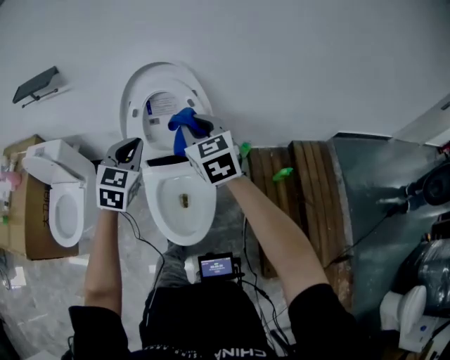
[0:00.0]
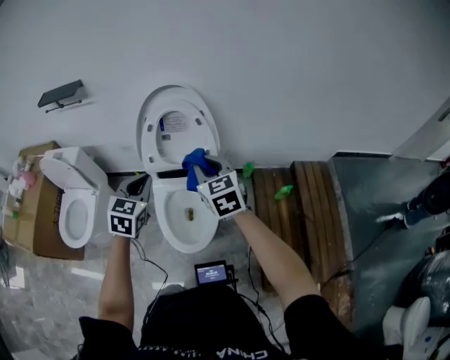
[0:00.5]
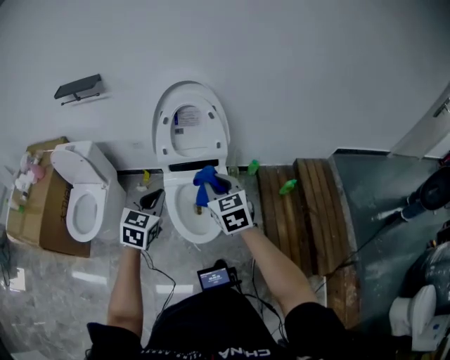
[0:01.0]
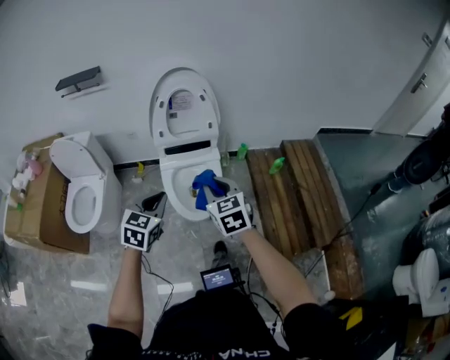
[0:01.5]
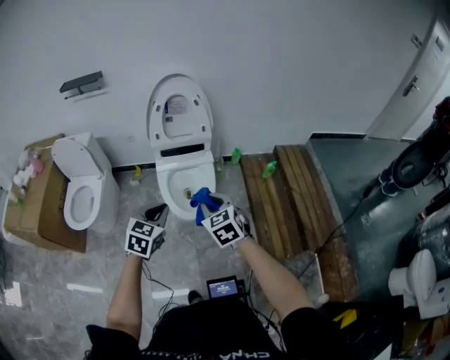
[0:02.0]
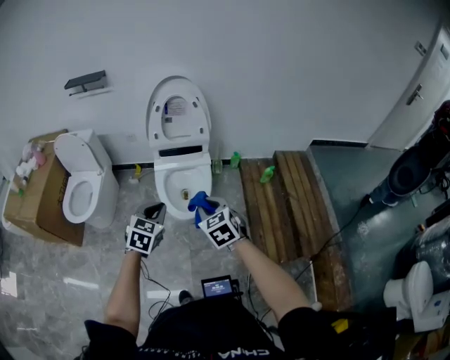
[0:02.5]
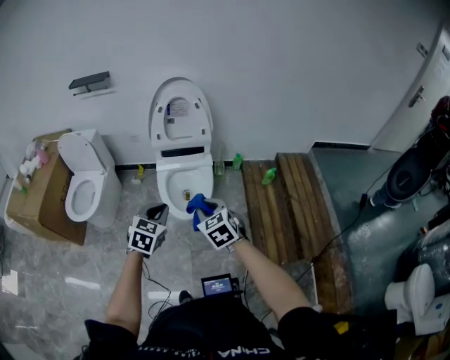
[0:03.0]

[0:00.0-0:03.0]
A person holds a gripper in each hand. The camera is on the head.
0:00.0 to 0:01.5: The grippers both shift backward by some 40 cm.
0:01.5 to 0:03.0: The two grippers go some 15 cm backward and to the right.

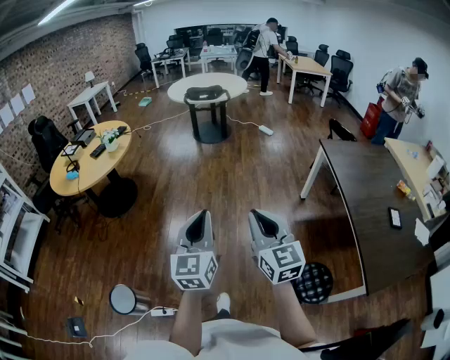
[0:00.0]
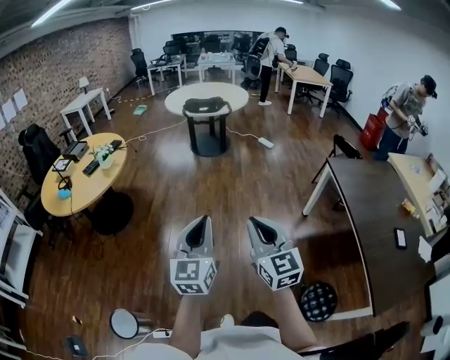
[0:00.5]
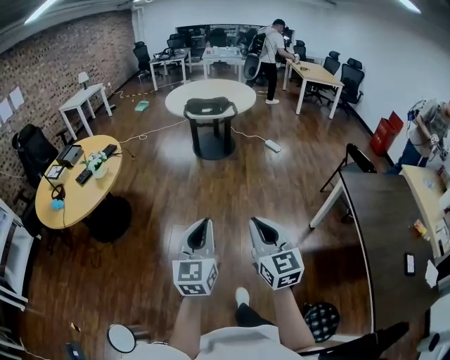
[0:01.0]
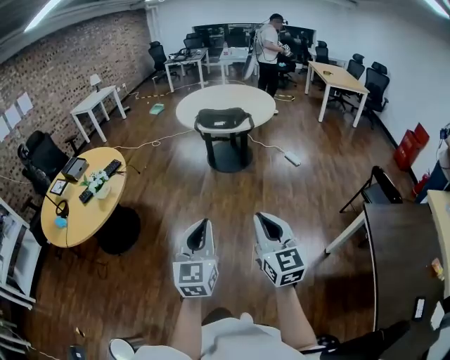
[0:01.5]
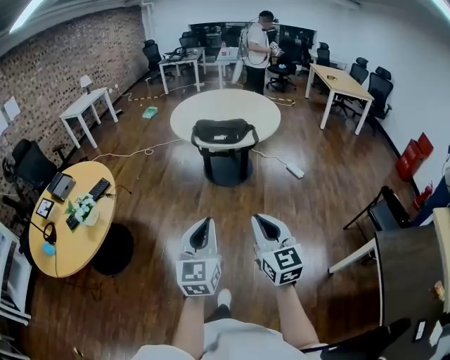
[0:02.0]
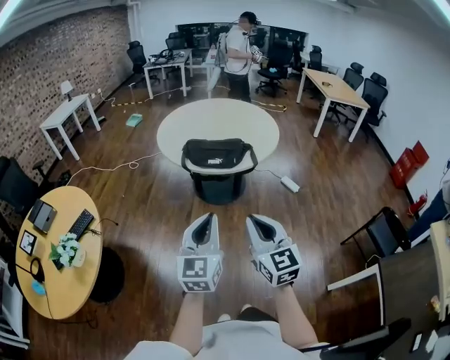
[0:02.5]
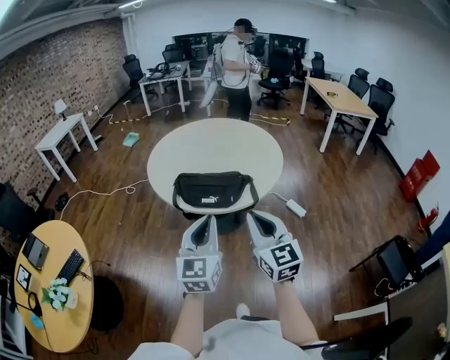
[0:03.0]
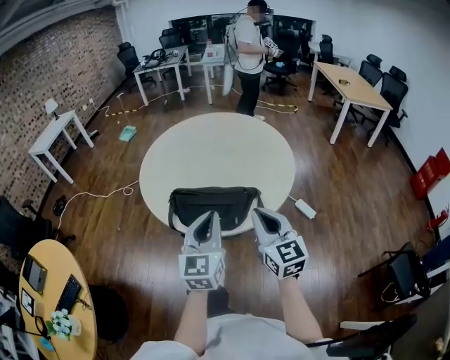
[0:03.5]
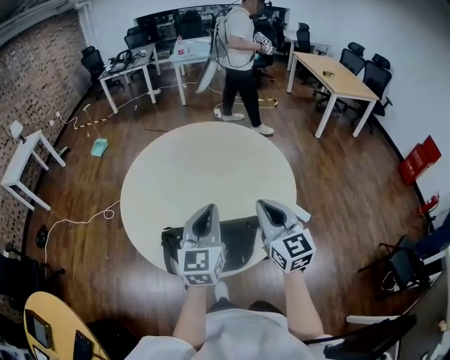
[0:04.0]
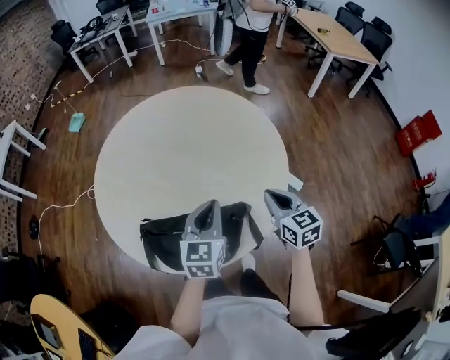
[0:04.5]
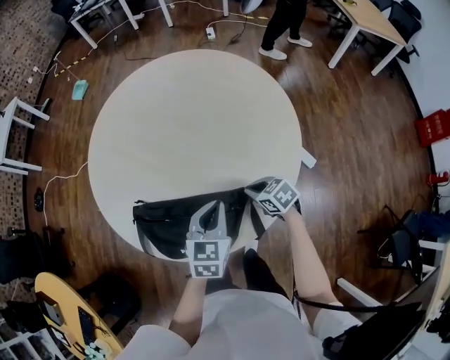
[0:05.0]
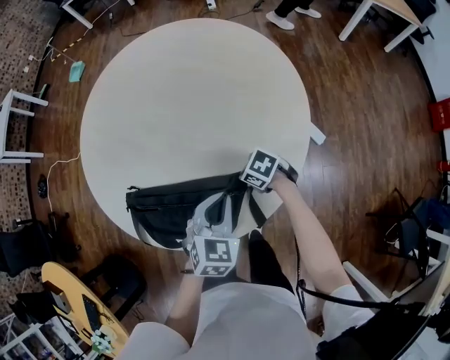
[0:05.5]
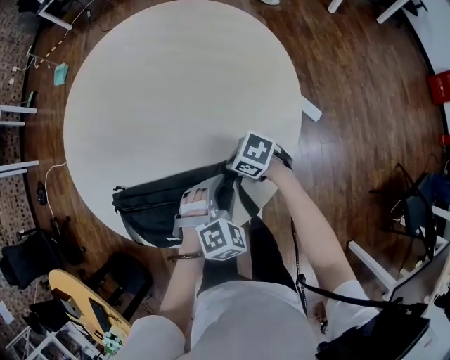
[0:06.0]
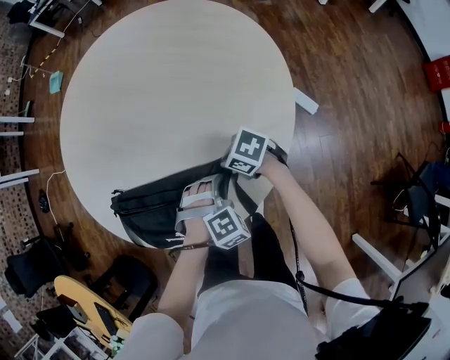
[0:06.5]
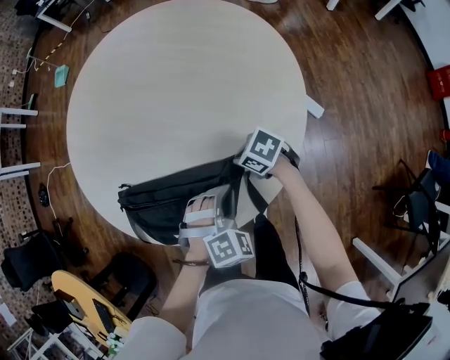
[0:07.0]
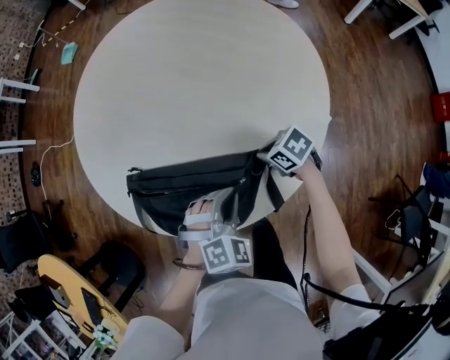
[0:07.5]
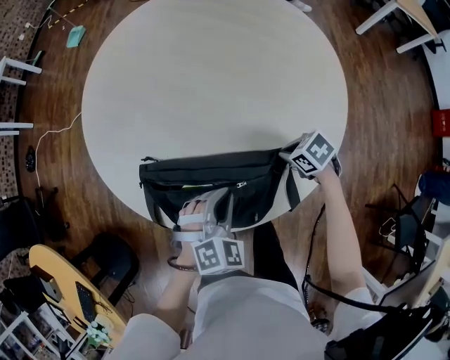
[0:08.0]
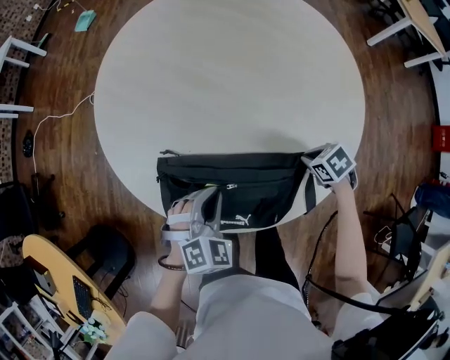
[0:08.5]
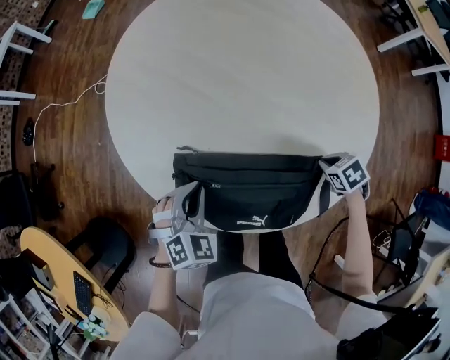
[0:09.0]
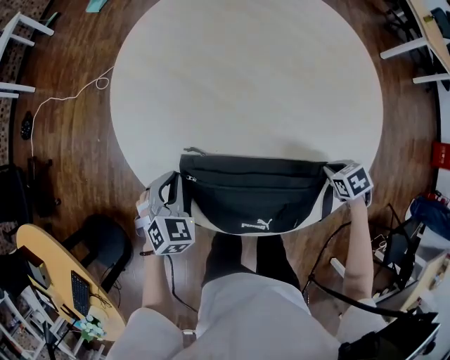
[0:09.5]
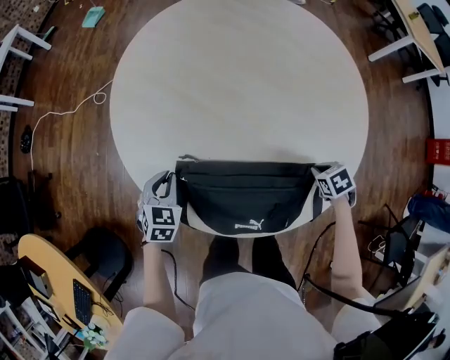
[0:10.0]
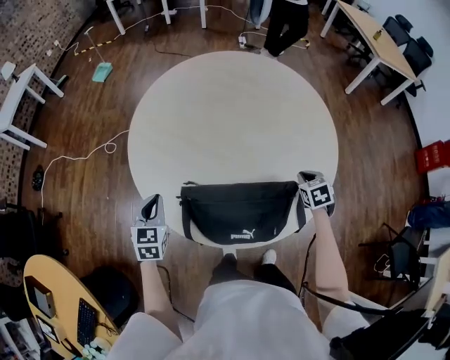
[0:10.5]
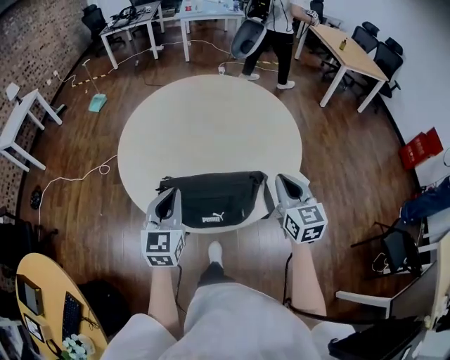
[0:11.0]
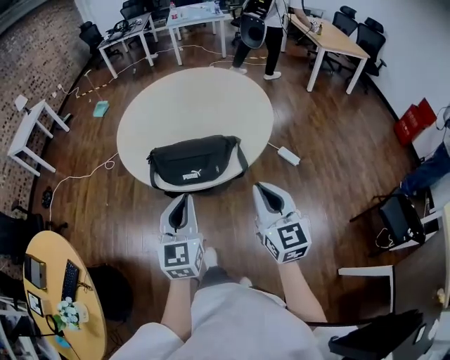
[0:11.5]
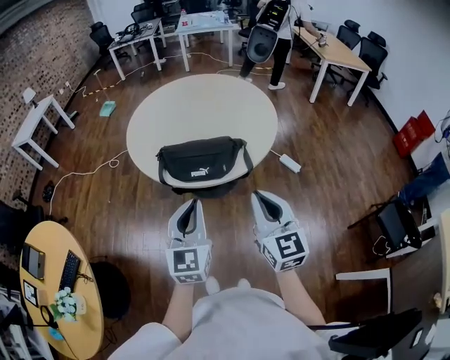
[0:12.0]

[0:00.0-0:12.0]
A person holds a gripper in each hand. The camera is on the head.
0:00.0 to 0:02.0: The two grippers travel together, forward, some 80 cm.
0:02.0 to 0:04.0: The two grippers travel together, forward, approximately 90 cm.
0:04.0 to 0:06.0: The two grippers go approximately 35 cm downward. The right gripper tips its fingers downward by roughly 40 degrees. The left gripper angles its fingers downward, by approximately 60 degrees, and opens.
0:06.0 to 0:08.0: The left gripper moves to the left and forward, about 15 cm, and closes up.
0:08.0 to 0:10.0: The right gripper swivels some 20 degrees; the left gripper ends up some 30 cm from where it was, and swivels roughly 30 degrees.
0:10.0 to 0:12.0: The left gripper moves about 60 cm, and tilts its fingers some 40 degrees upward. Meanwhile the right gripper changes place by roughly 60 cm, and tips its fingers upward by roughly 80 degrees.

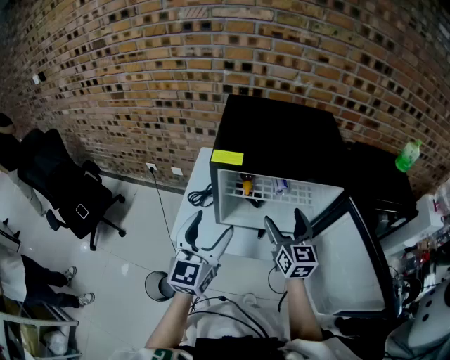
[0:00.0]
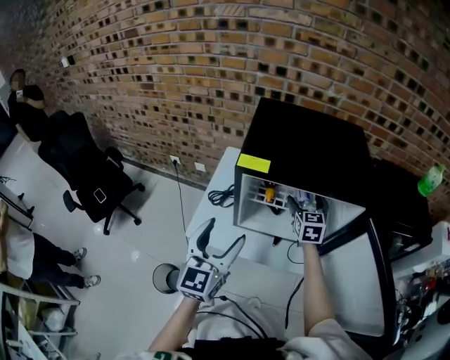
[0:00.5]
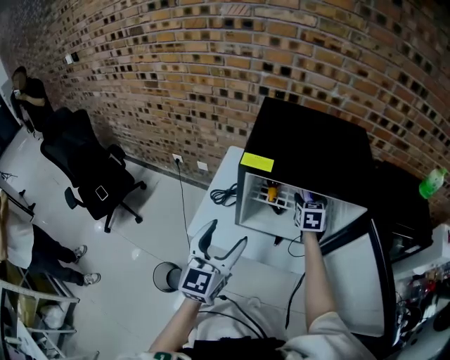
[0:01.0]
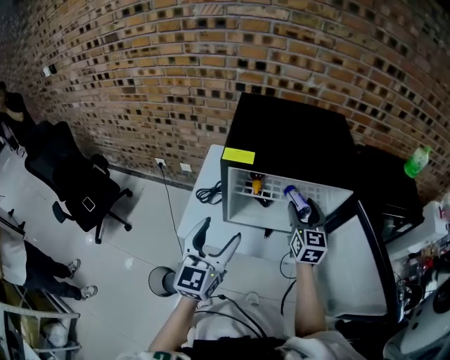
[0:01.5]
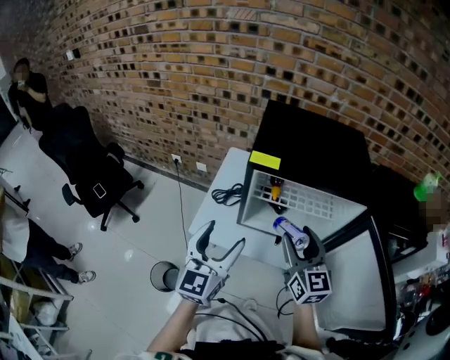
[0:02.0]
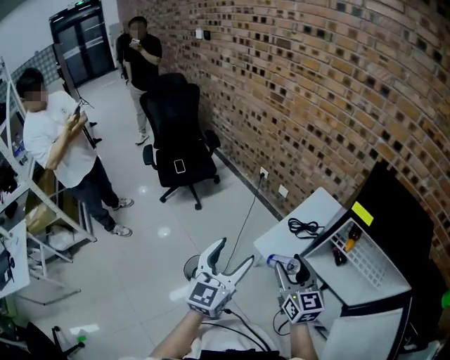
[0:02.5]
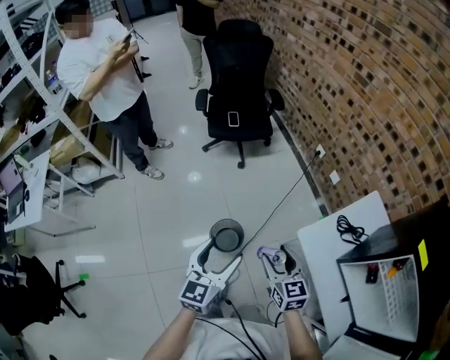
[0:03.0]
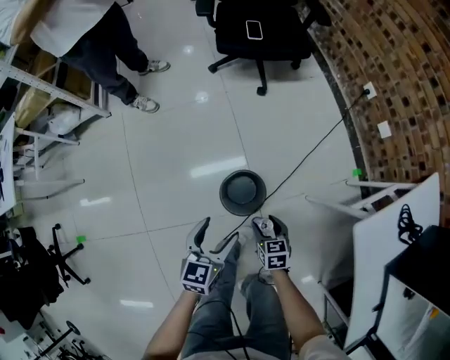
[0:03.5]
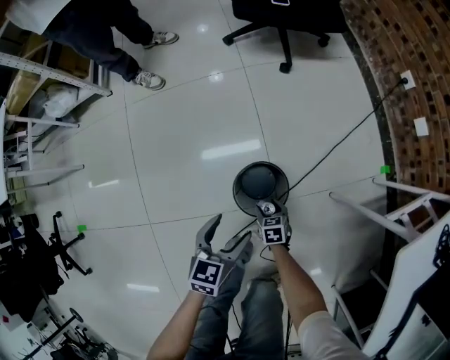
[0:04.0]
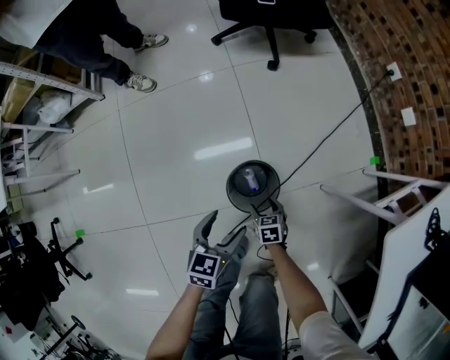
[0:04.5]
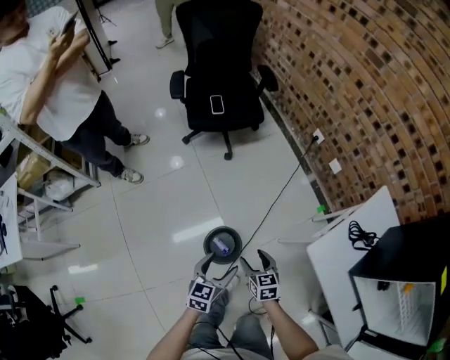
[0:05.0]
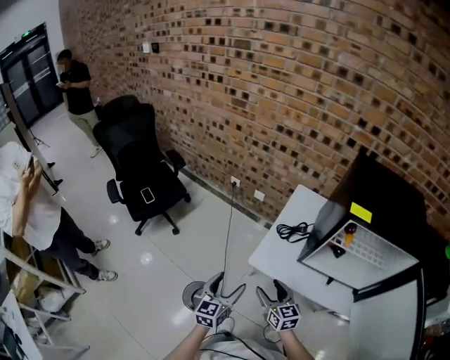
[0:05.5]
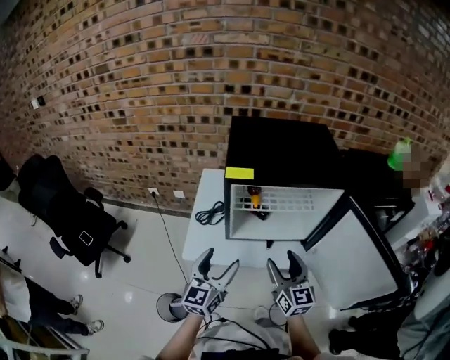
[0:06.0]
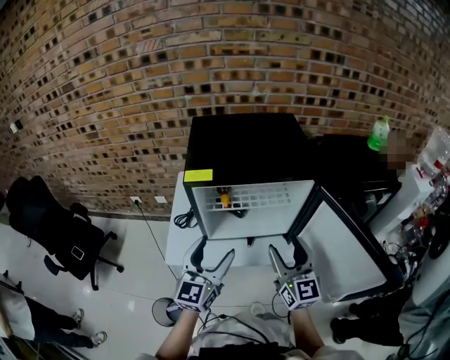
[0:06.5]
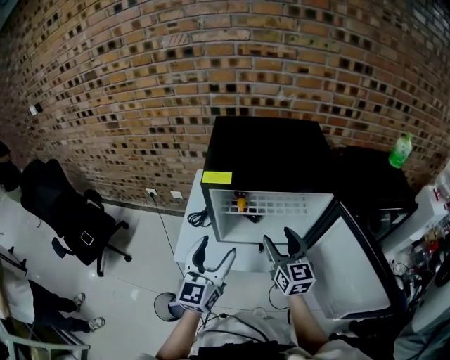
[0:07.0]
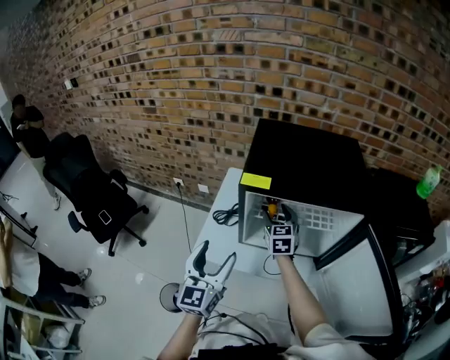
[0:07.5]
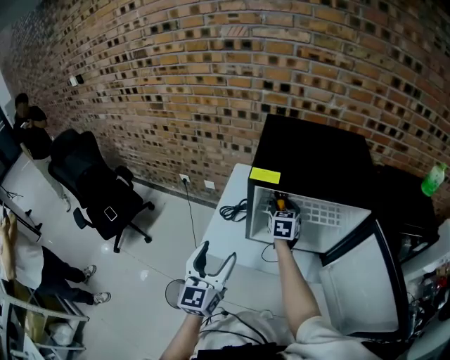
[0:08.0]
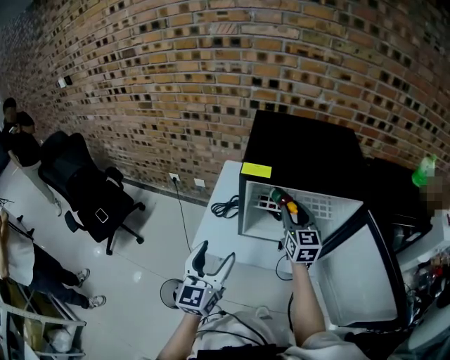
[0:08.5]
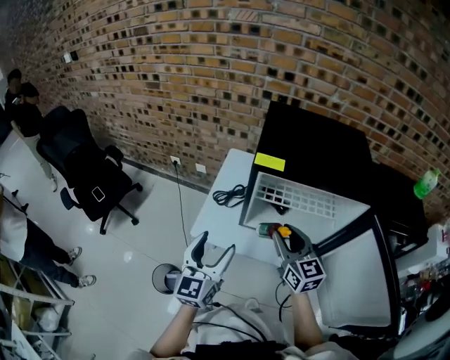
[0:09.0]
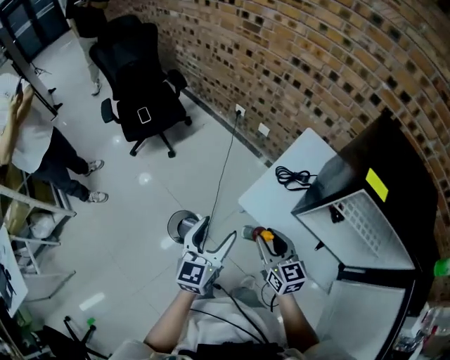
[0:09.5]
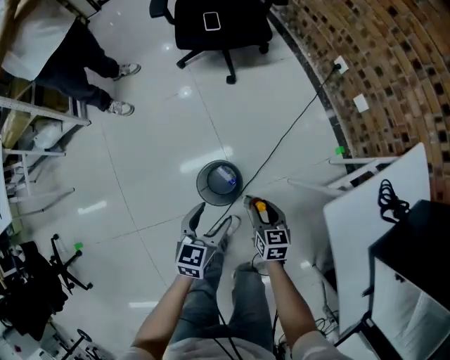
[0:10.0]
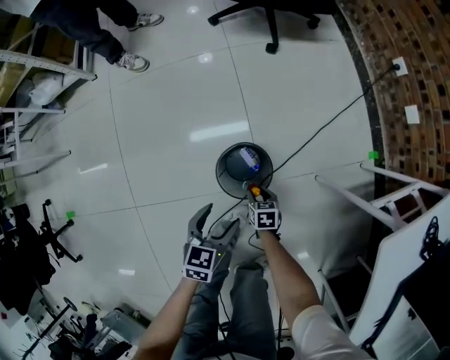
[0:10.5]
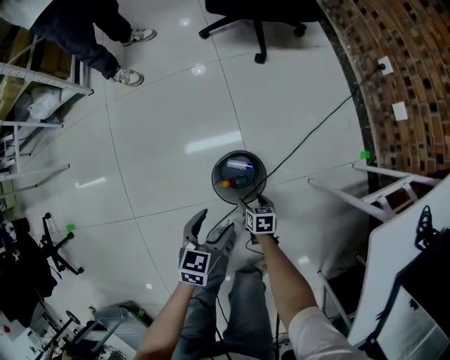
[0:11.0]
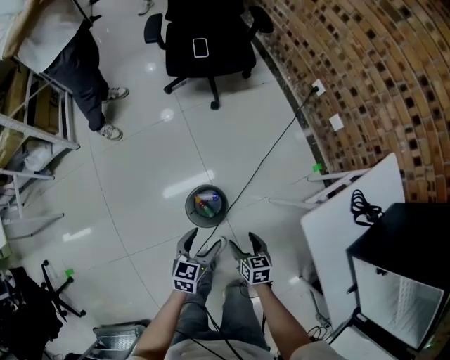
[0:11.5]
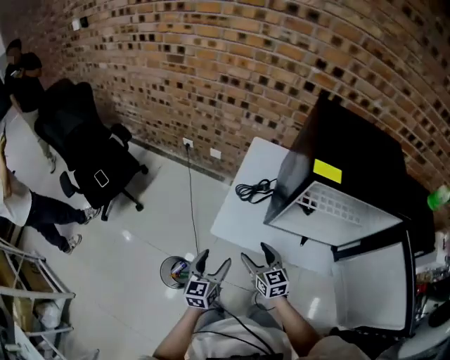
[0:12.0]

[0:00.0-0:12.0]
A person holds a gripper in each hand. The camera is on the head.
0:00.0 to 0:02.0: The right gripper reaches approximately 15 cm forward, then returns, and closes.
0:02.0 to 0:04.0: Both grippers are carried some 50 cm. Both grippers move downward, some 70 cm. The left gripper tilts its fingers approximately 40 degrees downward. Meanwhile the right gripper tilts its fingers about 60 degrees downward.
0:04.0 to 0:06.0: The pair of grippers is taken about 50 cm. The two grippers go roughly 60 cm upward. The left gripper points its fingers some 40 degrees further upward; the right gripper tilts its fingers approximately 60 degrees upward.
0:06.0 to 0:08.0: The right gripper is displaced forward by about 25 cm, and changes its angle by approximately 20 degrees; the left gripper shifts approximately 5 cm upward, and reaches about 10 cm to the right, then returns.
0:08.0 to 0:10.0: The left gripper moves downward, some 50 cm, and points its fingers about 40 degrees further downward. Meanwhile the right gripper shifts by some 70 cm, and rotates about 70 degrees.
0:10.0 to 0:12.0: The right gripper goes roughly 30 cm upward, turns by roughly 40 degrees, and opens, while the left gripper changes place by approximately 30 cm, and rotates roughly 40 degrees.
